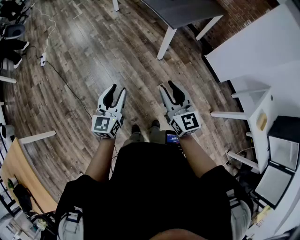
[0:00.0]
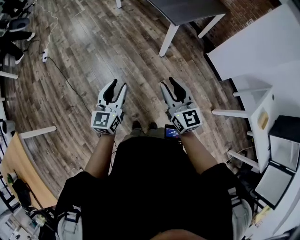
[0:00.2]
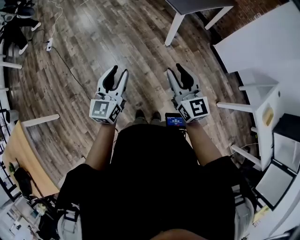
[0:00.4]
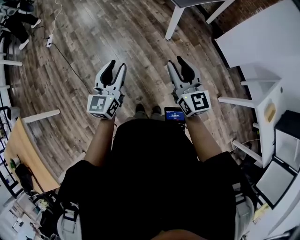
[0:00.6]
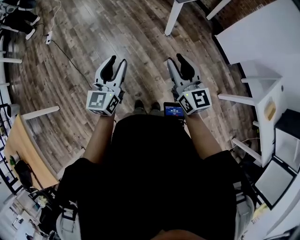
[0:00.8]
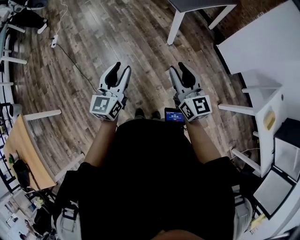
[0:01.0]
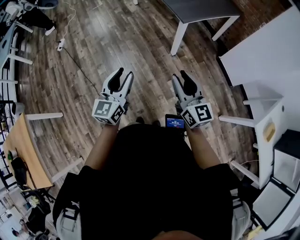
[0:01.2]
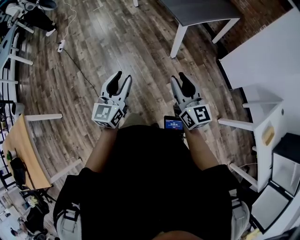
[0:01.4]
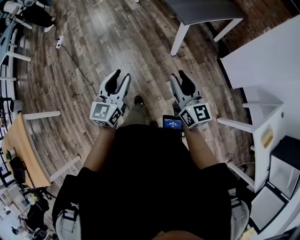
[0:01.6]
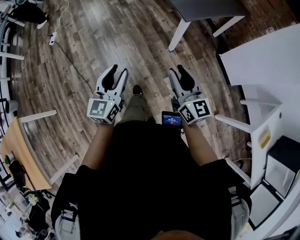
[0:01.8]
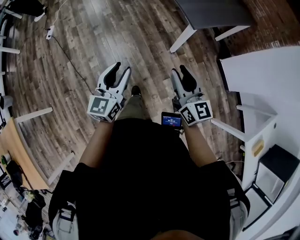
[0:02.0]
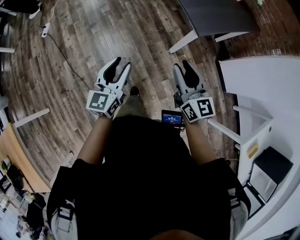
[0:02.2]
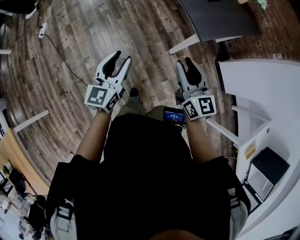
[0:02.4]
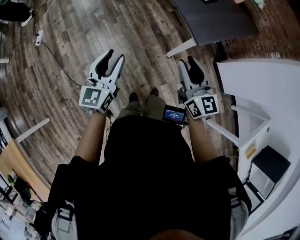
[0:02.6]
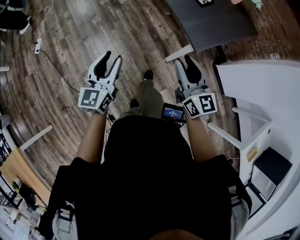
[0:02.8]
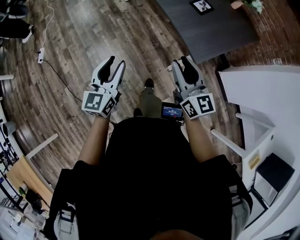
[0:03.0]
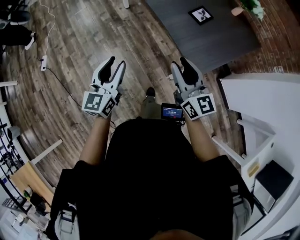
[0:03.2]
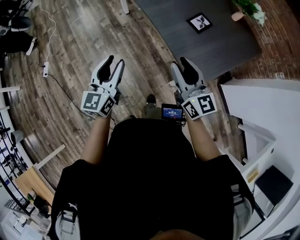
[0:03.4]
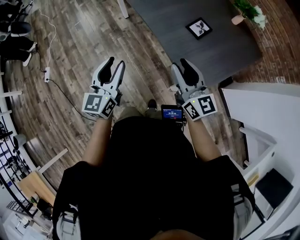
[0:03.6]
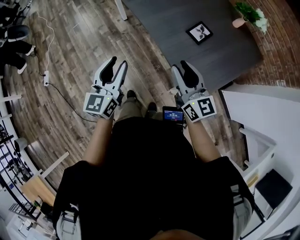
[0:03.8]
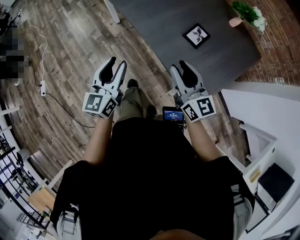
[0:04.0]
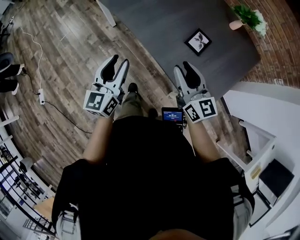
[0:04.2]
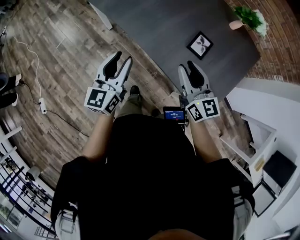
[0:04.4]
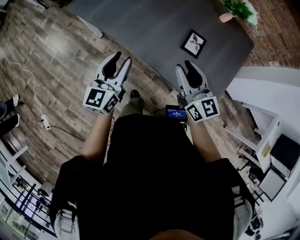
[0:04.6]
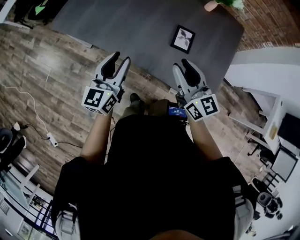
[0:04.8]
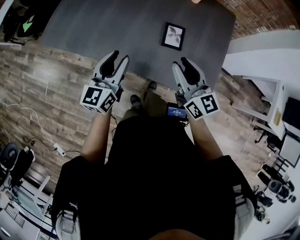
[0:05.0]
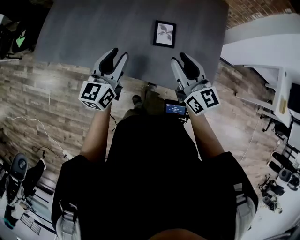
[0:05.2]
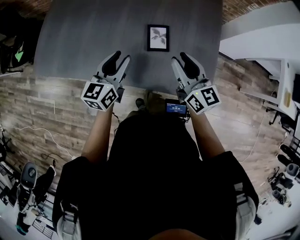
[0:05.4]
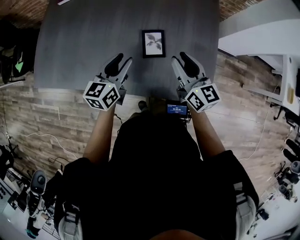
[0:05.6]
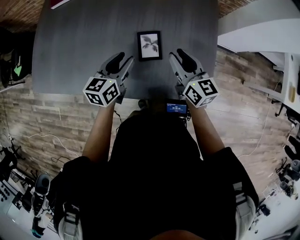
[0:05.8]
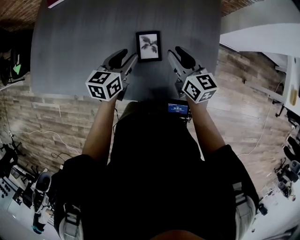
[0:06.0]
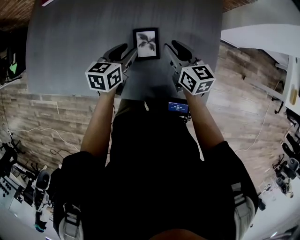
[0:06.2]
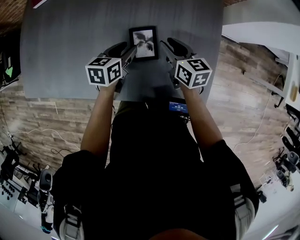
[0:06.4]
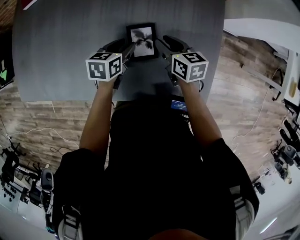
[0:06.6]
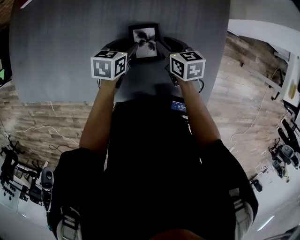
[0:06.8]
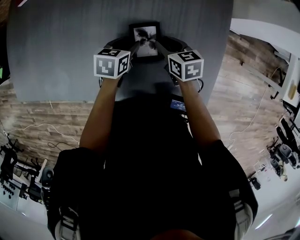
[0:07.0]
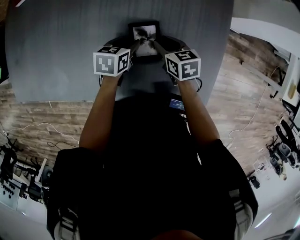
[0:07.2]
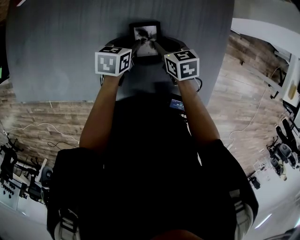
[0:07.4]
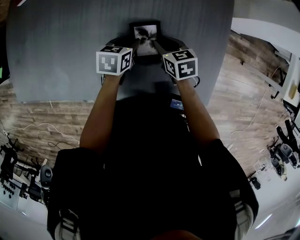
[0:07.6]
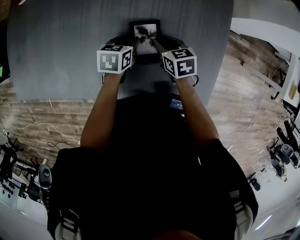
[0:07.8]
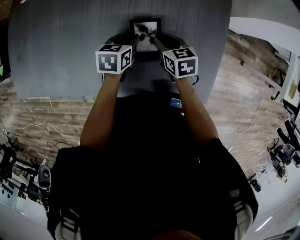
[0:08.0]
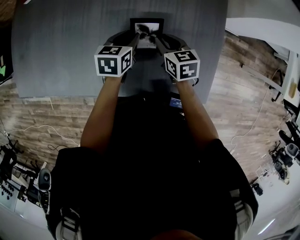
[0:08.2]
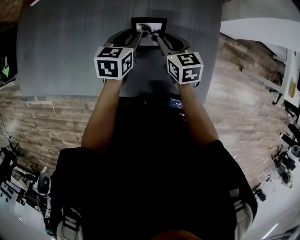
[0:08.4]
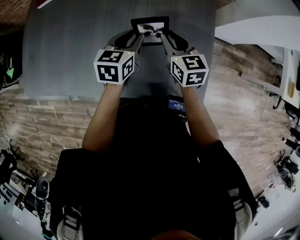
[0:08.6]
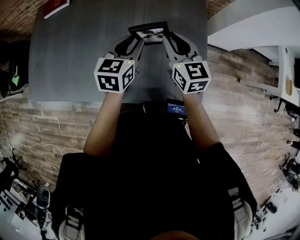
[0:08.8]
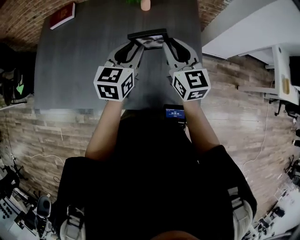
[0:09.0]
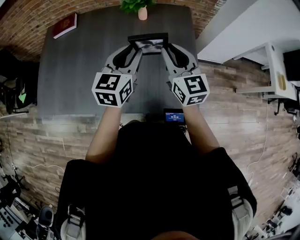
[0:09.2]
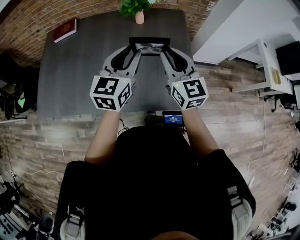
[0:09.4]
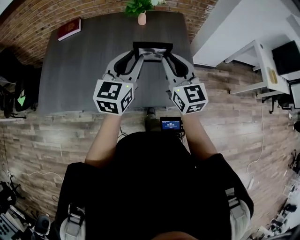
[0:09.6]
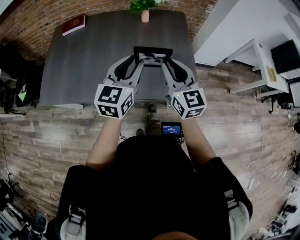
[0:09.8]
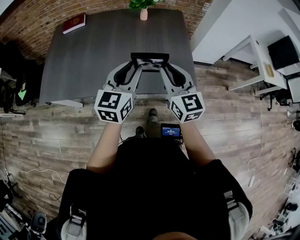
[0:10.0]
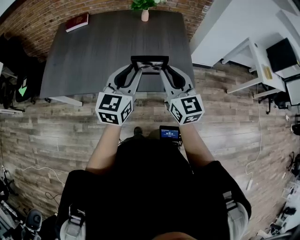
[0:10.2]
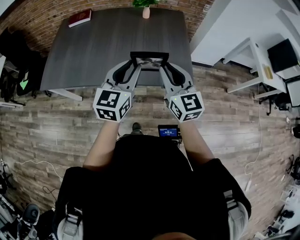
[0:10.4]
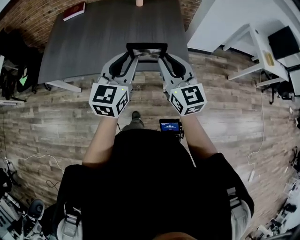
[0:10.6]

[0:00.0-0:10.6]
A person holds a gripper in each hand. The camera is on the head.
0:00.0 to 0:01.6: The grippers both shift to the right by some 10 cm.
0:01.6 to 0:03.0: The pair of grippers is taken forward, about 40 cm.
0:03.0 to 0:04.6: The two grippers travel together, forward, about 50 cm. The right gripper rotates some 20 degrees. Meanwhile the left gripper changes its angle by roughly 30 degrees.
0:04.6 to 0:06.0: The right gripper shifts by some 30 cm, and turns by about 30 degrees; the left gripper ends up about 40 cm from where it was, and swivels about 50 degrees.
0:06.0 to 0:07.6: The grippers both shift downward by roughly 15 cm. The left gripper changes its angle by about 20 degrees; the right gripper angles its fingers downward, by about 30 degrees.
0:07.6 to 0:09.0: Both grippers move upward, about 30 cm. The right gripper tips its fingers upward by approximately 40 degrees; the left gripper points its fingers approximately 30 degrees further upward.
0:09.0 to 0:10.6: The grippers both shift backward by about 35 cm.

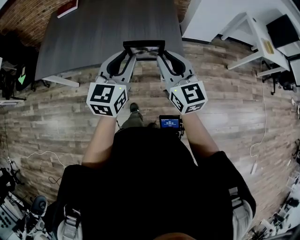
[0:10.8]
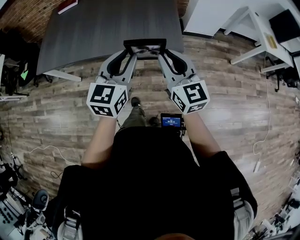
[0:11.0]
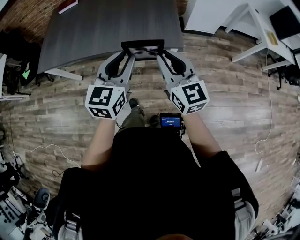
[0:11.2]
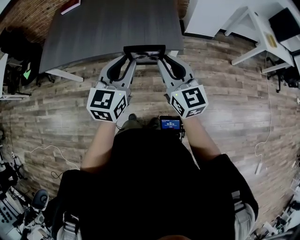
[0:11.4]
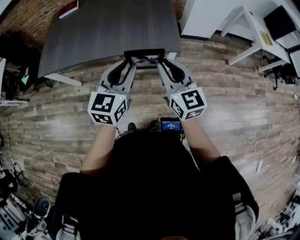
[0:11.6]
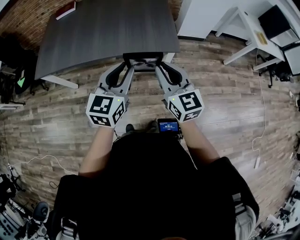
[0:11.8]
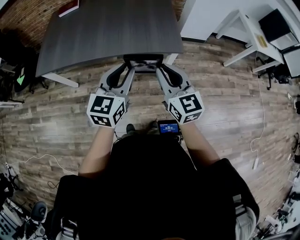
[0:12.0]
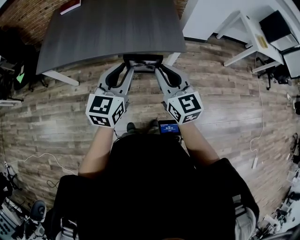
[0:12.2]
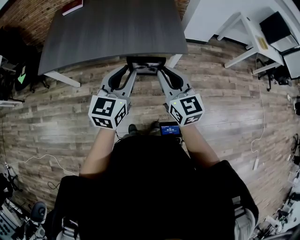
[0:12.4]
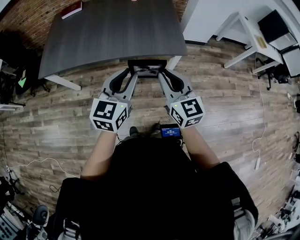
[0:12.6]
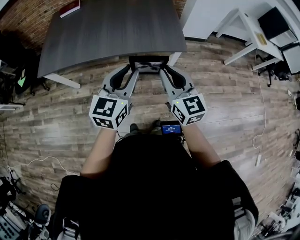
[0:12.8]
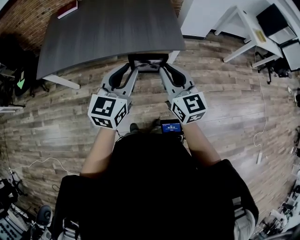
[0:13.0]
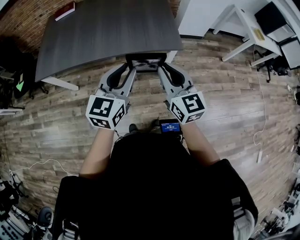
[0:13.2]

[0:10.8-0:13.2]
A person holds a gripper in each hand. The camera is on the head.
0:10.8 to 0:12.0: Both grippers move backward, approximately 10 cm.
0:12.0 to 0:13.2: The grippers make only small movements.

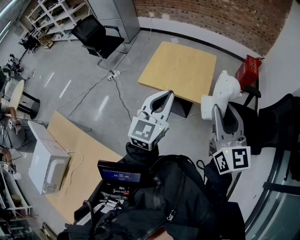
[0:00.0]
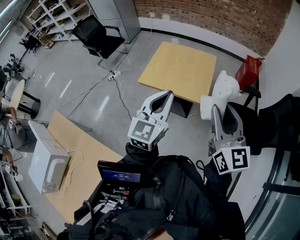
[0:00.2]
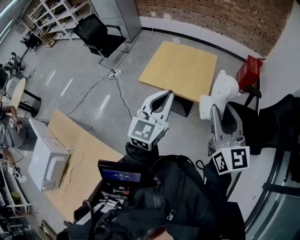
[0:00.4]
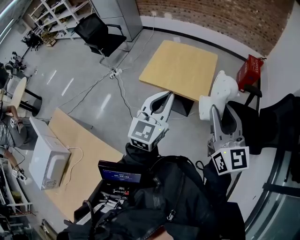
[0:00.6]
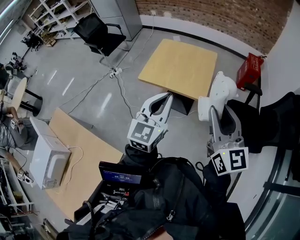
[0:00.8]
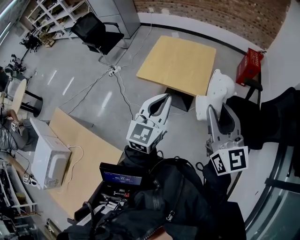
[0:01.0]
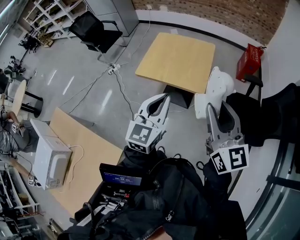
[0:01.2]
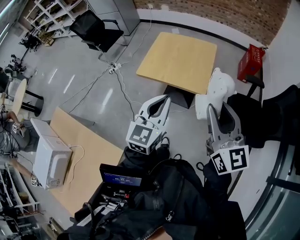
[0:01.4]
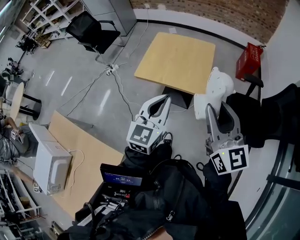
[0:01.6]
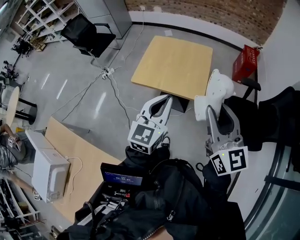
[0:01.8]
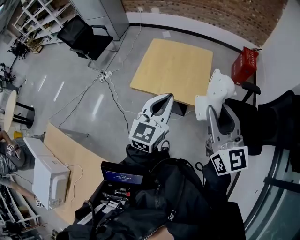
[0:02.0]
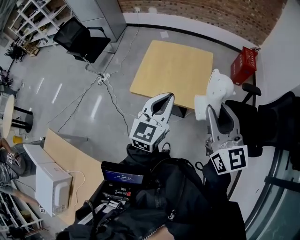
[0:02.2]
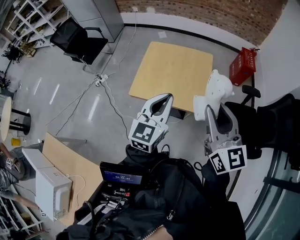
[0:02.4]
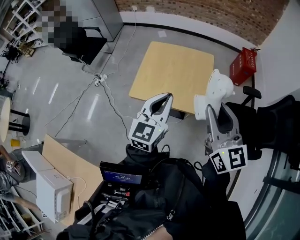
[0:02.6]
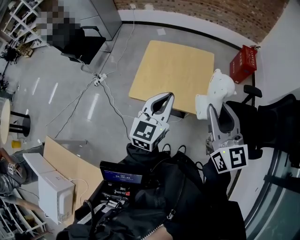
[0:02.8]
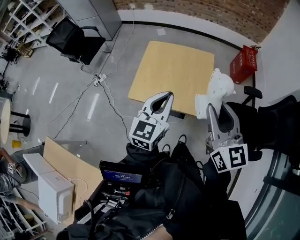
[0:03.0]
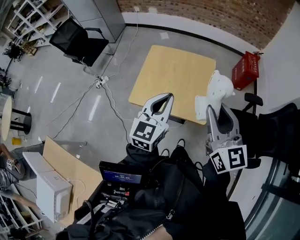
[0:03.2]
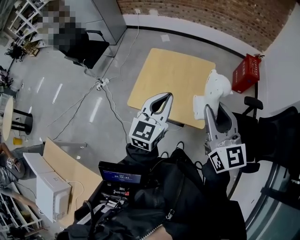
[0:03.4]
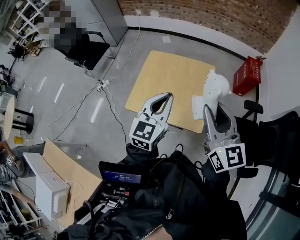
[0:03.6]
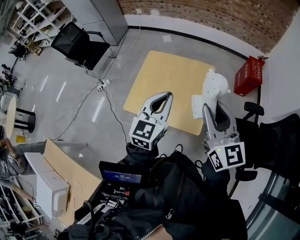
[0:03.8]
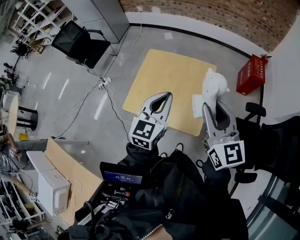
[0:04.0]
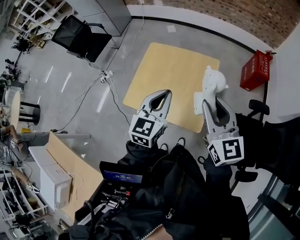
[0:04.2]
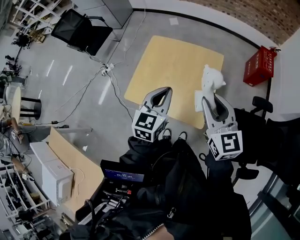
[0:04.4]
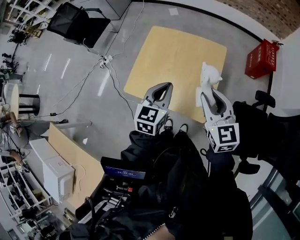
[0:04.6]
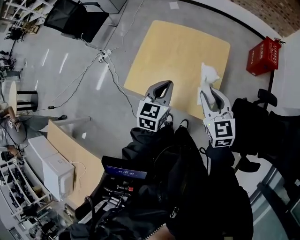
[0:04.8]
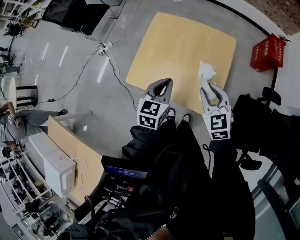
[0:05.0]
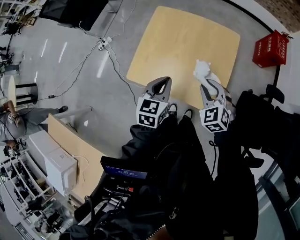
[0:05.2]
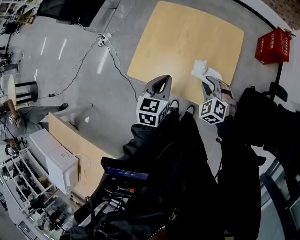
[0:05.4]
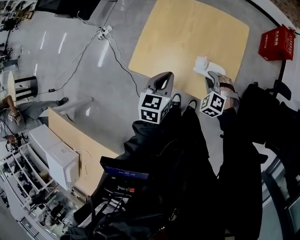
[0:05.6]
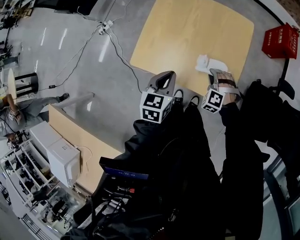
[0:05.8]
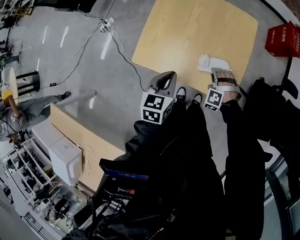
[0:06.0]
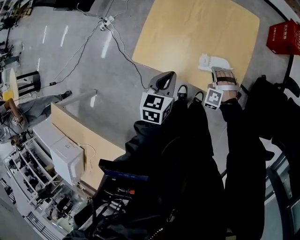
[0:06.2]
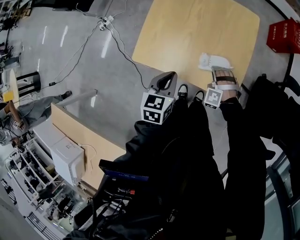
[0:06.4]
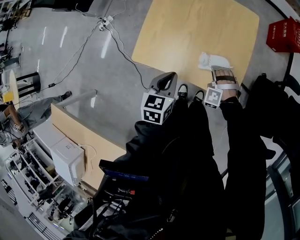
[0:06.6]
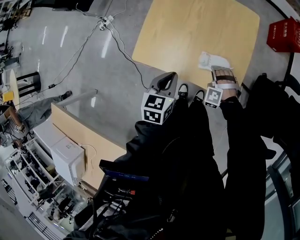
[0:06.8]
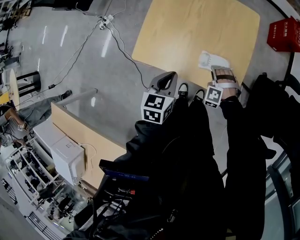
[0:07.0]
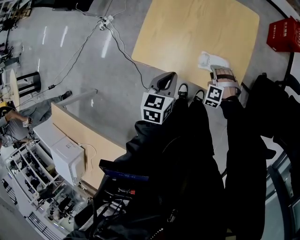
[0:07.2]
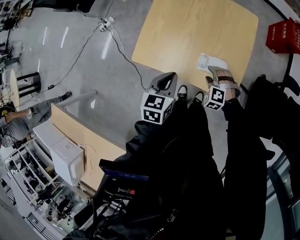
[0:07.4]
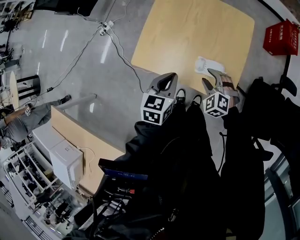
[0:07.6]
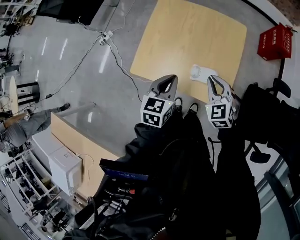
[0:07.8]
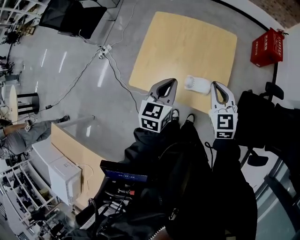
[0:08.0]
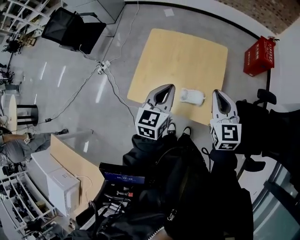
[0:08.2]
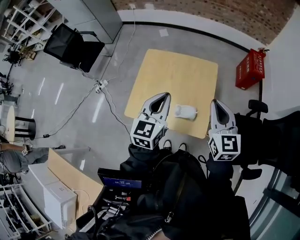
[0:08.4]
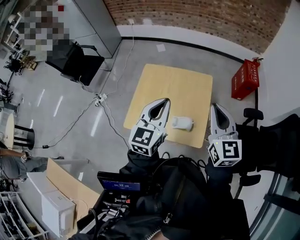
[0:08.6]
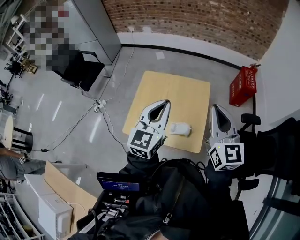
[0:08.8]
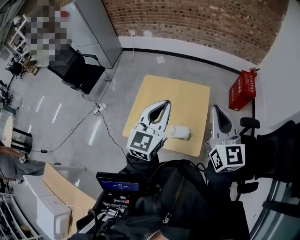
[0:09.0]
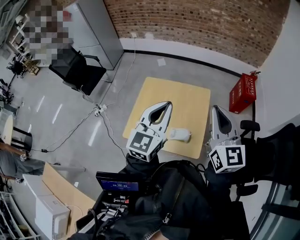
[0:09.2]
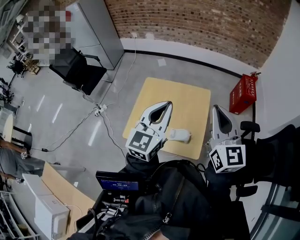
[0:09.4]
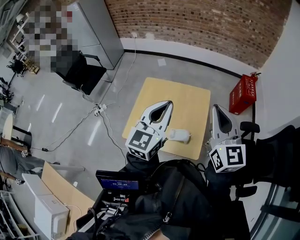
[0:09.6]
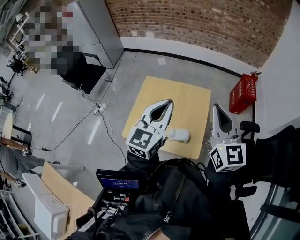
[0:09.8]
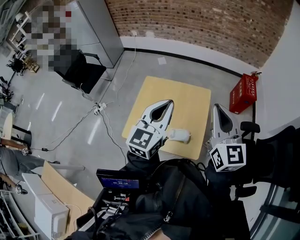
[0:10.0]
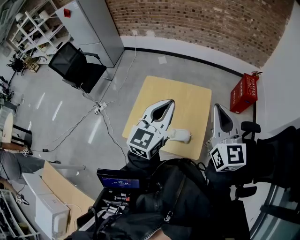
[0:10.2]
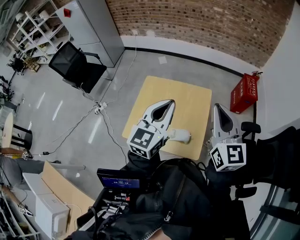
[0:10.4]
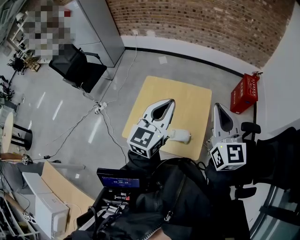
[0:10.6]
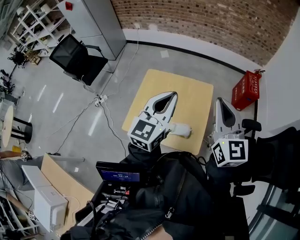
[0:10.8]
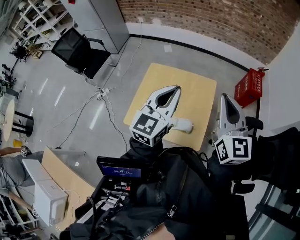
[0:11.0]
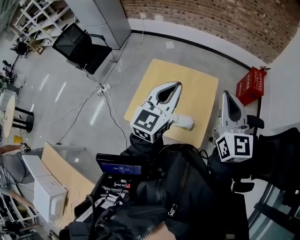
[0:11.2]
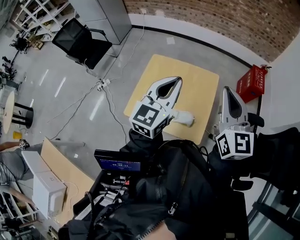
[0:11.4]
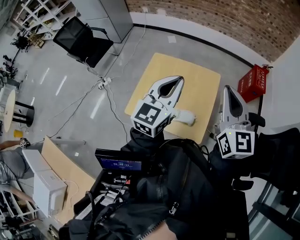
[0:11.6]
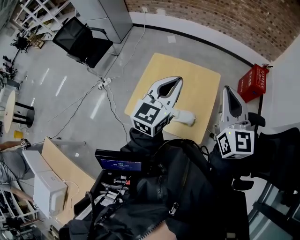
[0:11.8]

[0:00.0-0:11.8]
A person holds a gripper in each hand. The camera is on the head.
0:00.0 to 0:01.4: The left gripper ends up approximately 5 cm from where it was.
0:01.4 to 0:03.0: Both grippers move forward, some 25 cm.
0:03.0 to 0:04.4: The grippers both shift forward, downward and to the right by approximately 20 cm.
0:04.4 to 0:06.0: The left gripper heads downward and to the left, covering some 25 cm, and swivels some 20 degrees. Meanwhile the right gripper is displaced downward by about 40 cm, and rolls counterclockwise, seen from behind, by approximately 70 degrees.
0:06.0 to 0:07.4: The right gripper opens up.
0:07.4 to 0:08.8: The right gripper goes some 50 cm upward, points its fingers approximately 60 degrees further upward, and closes its fingers; the left gripper is displaced upward by some 30 cm, and points its fingers approximately 40 degrees further upward.
0:08.8 to 0:11.8: The grippers make only small movements.
